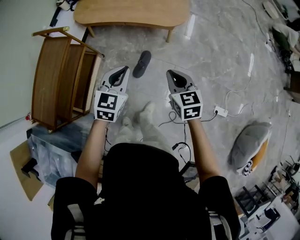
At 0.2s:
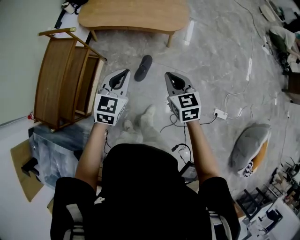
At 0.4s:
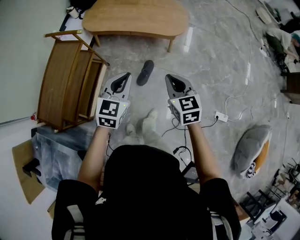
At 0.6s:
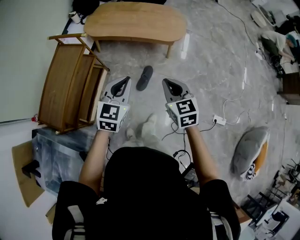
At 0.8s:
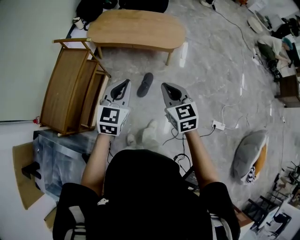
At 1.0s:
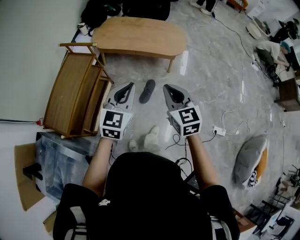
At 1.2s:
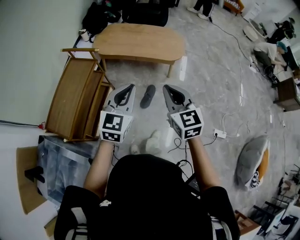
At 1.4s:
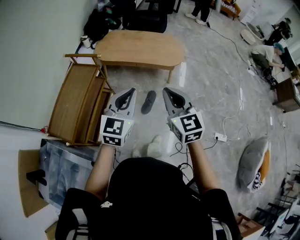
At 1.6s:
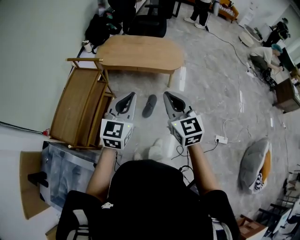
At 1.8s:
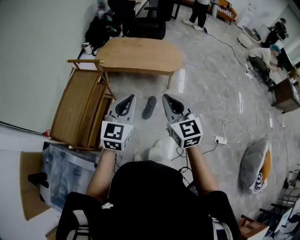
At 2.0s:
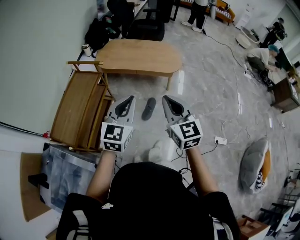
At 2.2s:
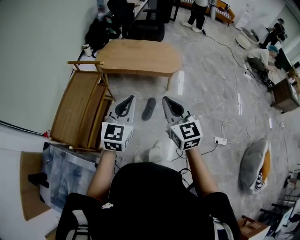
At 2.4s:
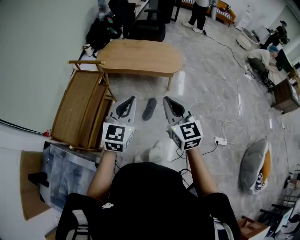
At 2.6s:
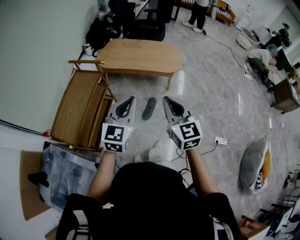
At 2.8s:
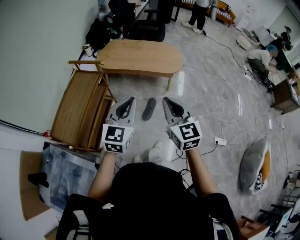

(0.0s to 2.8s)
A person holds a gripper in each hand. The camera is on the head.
0.0s - 1.4s: The left gripper shifts roughly 25 cm upward, backward and to the left. Meanwhile the right gripper is displaced upward, to the left and backward by roughly 30 cm, and changes its angle by approximately 20 degrees.
1.4s - 2.8s: The grippers make only small movements.

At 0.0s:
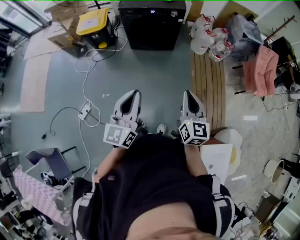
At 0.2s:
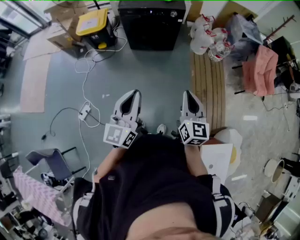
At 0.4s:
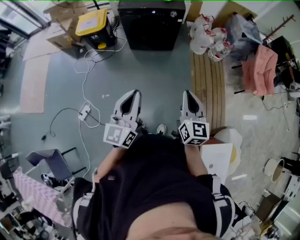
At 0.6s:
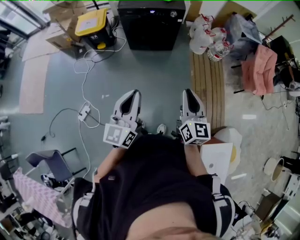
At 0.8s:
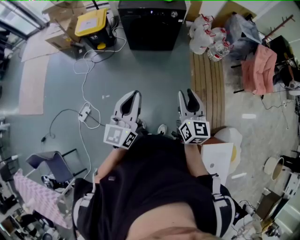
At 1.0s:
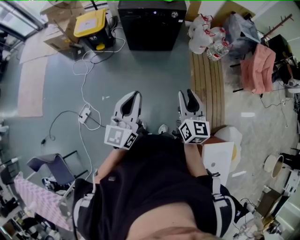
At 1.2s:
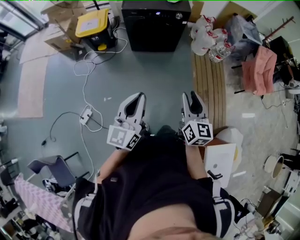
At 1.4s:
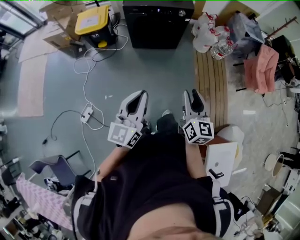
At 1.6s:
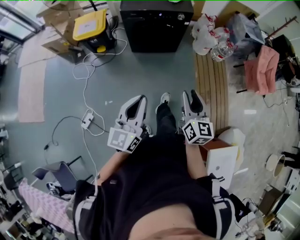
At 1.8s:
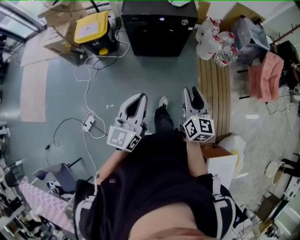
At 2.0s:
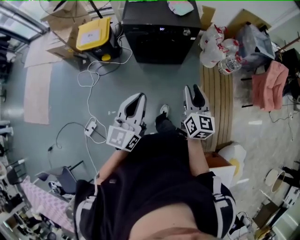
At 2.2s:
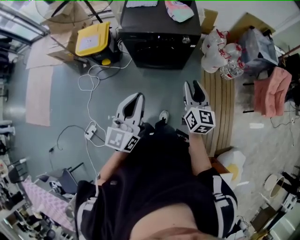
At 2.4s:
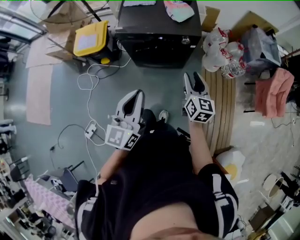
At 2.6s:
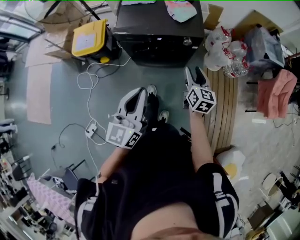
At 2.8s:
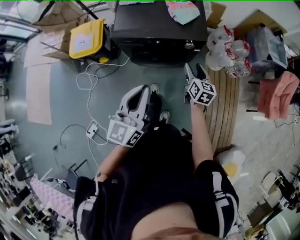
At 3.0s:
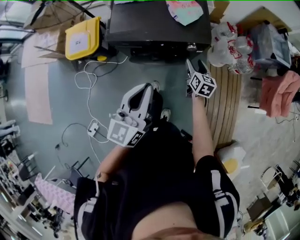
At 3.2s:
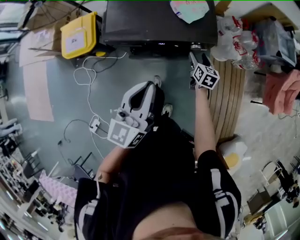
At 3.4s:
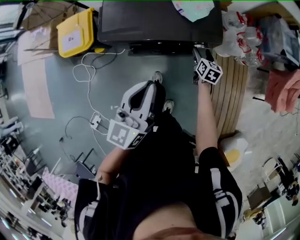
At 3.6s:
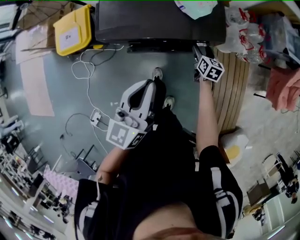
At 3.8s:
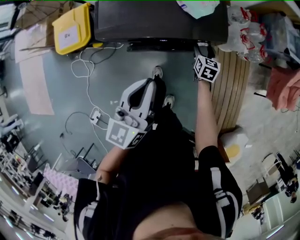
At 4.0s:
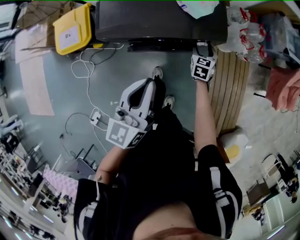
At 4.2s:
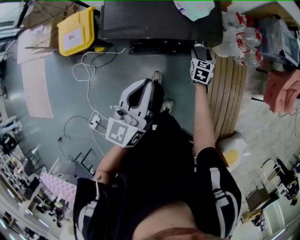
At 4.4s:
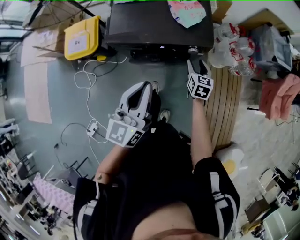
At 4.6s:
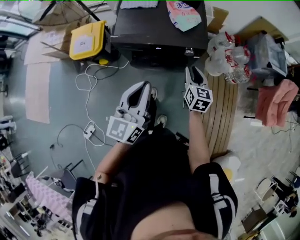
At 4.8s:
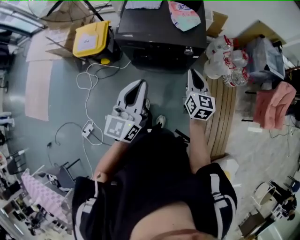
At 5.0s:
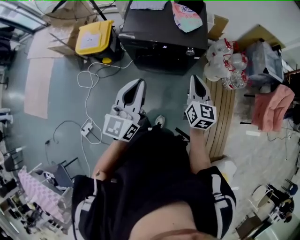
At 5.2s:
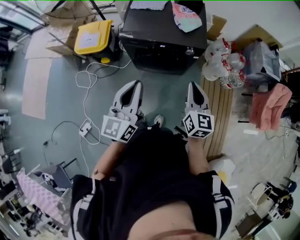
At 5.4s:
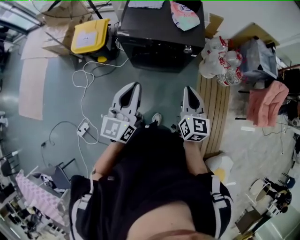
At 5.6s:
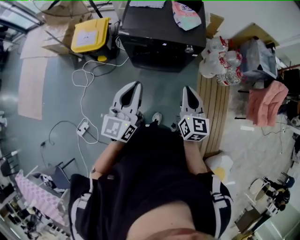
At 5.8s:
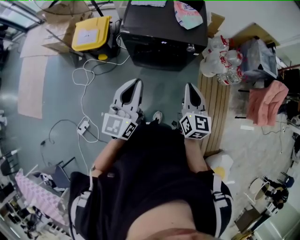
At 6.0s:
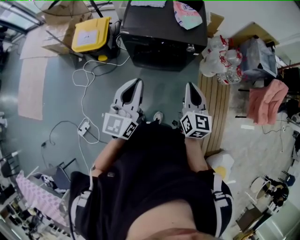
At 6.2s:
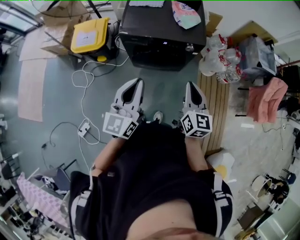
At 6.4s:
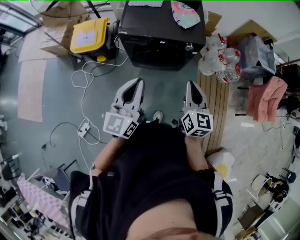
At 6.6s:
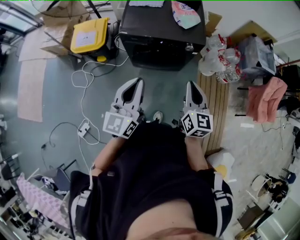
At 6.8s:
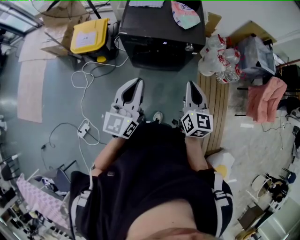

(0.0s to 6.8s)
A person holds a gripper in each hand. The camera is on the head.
0.0s - 1.4s: Both grippers move to the left and forward, approximately 15 cm. The right gripper opens up.
1.4s - 2.8s: The two grippers travel together, forward, roughly 60 cm.
2.8s - 4.0s: The right gripper moves downward and forward, roughly 30 cm, and swivels roughly 30 degrees. The left gripper goes some 25 cm forward and downward.
4.0s - 5.4s: The left gripper travels backward and upward by approximately 35 cm. The right gripper heads backward and upward, covering approximately 60 cm, swivels about 30 degrees, and closes up.
5.4s - 6.8s: The grippers stay close to where they were, moving slightly.

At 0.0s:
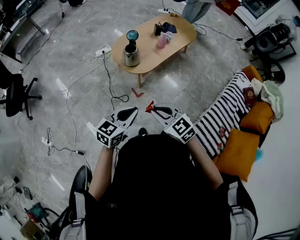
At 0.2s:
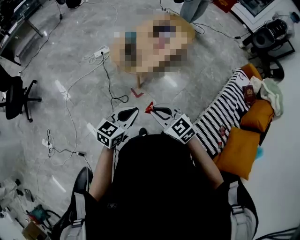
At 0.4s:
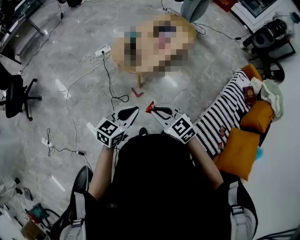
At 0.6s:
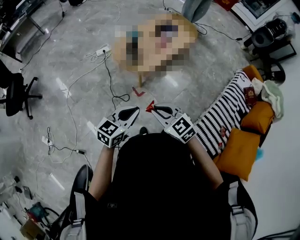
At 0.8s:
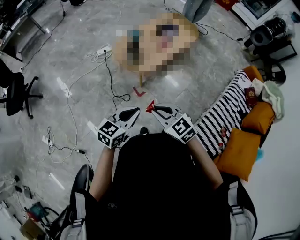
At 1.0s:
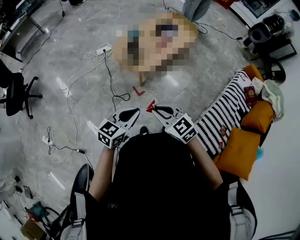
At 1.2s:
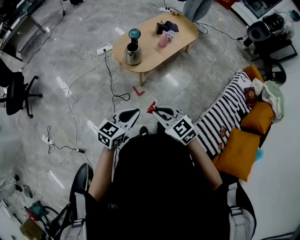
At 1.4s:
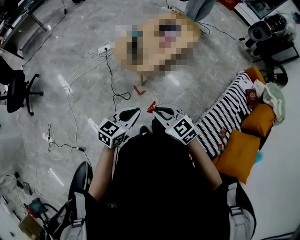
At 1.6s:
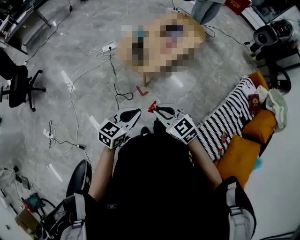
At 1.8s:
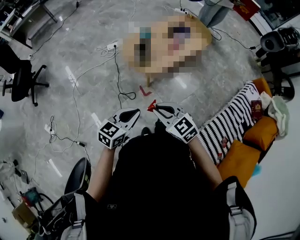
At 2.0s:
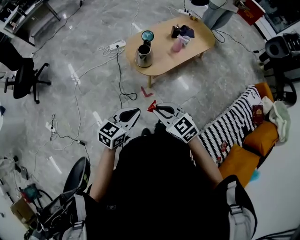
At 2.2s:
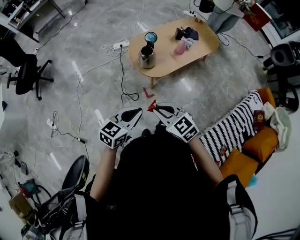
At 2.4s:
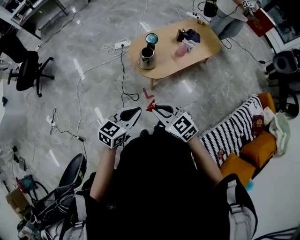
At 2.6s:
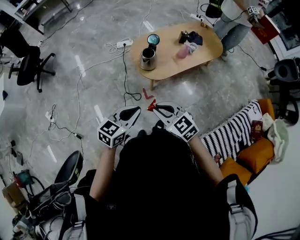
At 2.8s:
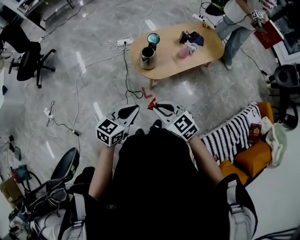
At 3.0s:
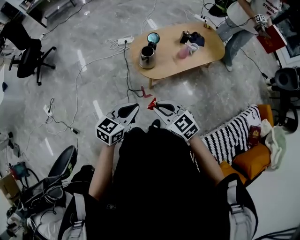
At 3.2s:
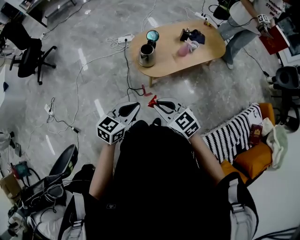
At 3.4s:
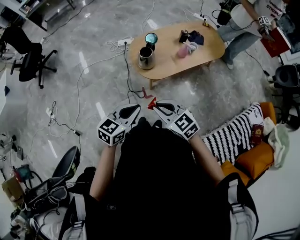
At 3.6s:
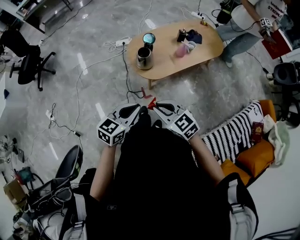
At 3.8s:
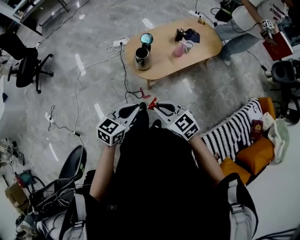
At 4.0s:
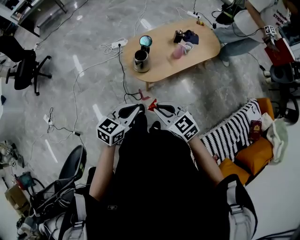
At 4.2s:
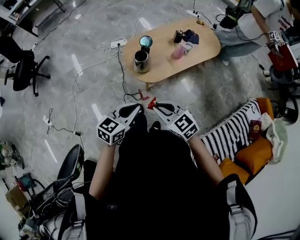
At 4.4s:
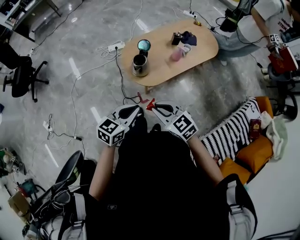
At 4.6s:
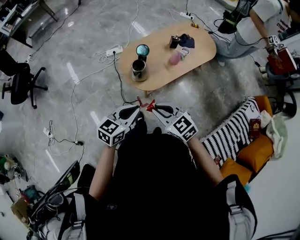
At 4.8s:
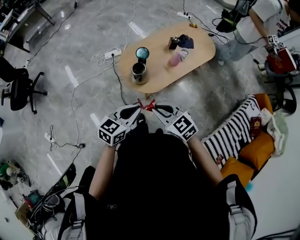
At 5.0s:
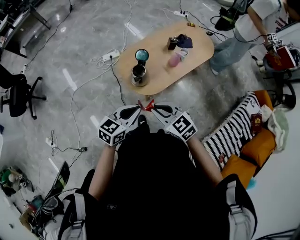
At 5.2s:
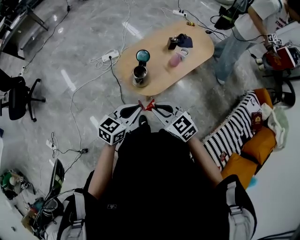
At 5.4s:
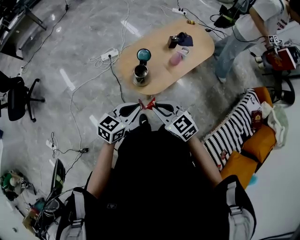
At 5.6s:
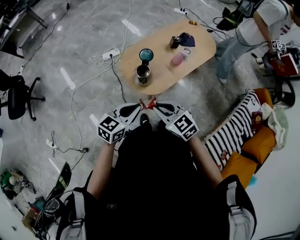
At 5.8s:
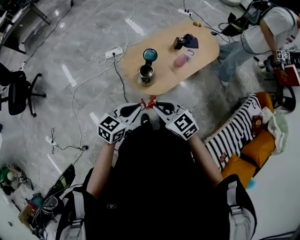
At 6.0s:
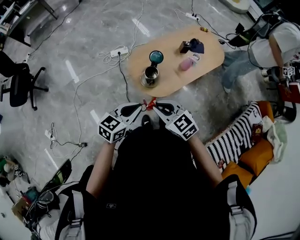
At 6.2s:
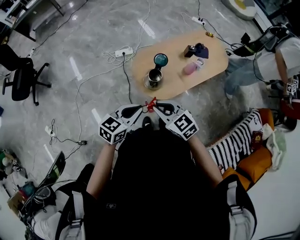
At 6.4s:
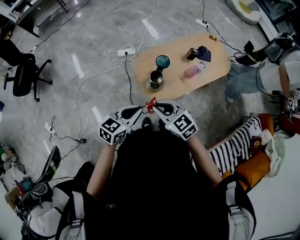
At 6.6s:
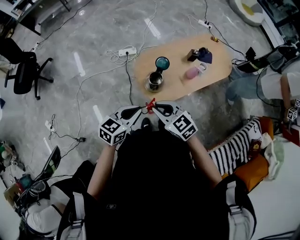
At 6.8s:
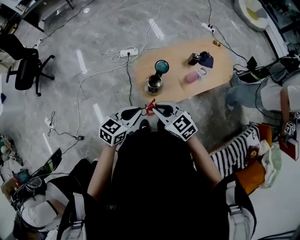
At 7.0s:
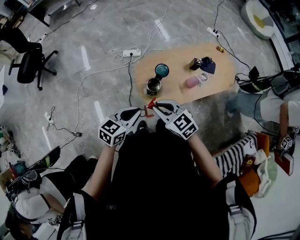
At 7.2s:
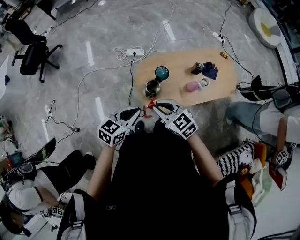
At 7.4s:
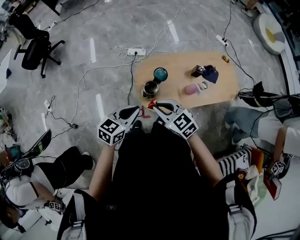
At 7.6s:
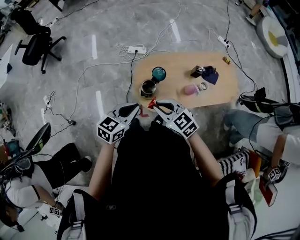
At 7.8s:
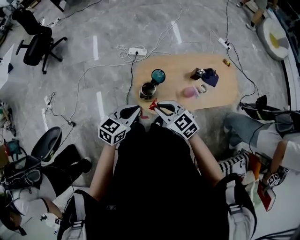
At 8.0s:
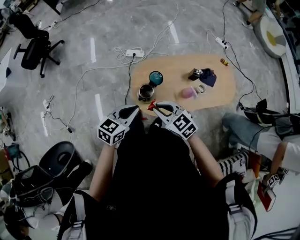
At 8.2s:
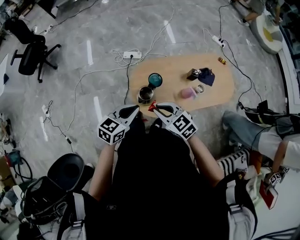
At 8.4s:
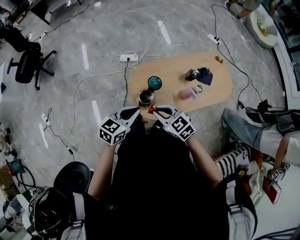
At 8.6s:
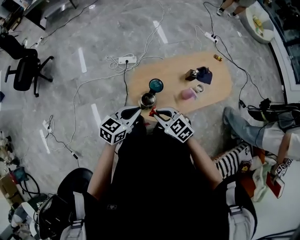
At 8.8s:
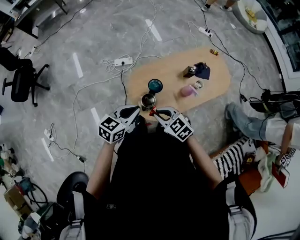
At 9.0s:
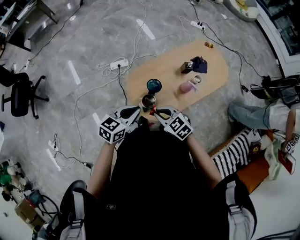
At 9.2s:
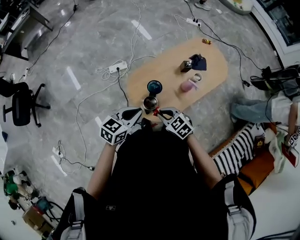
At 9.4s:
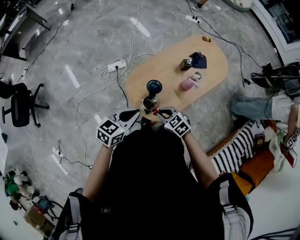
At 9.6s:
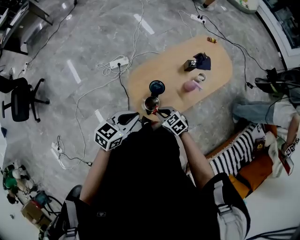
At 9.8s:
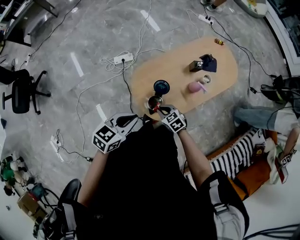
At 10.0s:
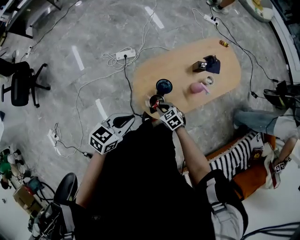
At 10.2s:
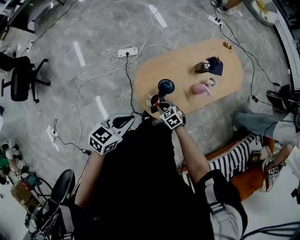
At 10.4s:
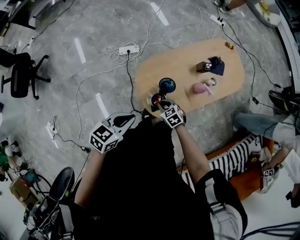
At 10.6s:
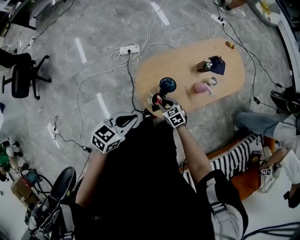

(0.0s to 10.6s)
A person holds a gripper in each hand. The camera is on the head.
0.0s - 1.6s: The grippers make only small movements.
1.6s - 3.0s: The two grippers go about 10 cm forward and to the right.
3.0s - 4.6s: Both grippers move forward, approximately 10 cm.
4.6s - 6.0s: The two grippers go about 10 cm to the left and forward.
6.0s - 7.6s: The left gripper ends up about 10 cm from where it was, and swivels roughly 20 degrees, while the right gripper ends up some 15 cm from where it was, and rotates approximately 20 degrees.
7.6s - 9.0s: The right gripper heads downward and forward, covering approximately 10 cm, and rotates approximately 20 degrees, while the left gripper goes about 10 cm forward, and changes its angle by roughly 20 degrees.
9.0s - 10.6s: The right gripper is displaced downward by approximately 20 cm. Meanwhile the left gripper moves to the left, roughly 5 cm.

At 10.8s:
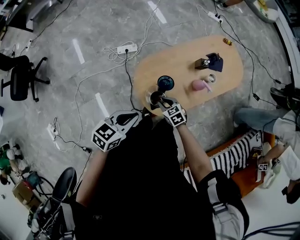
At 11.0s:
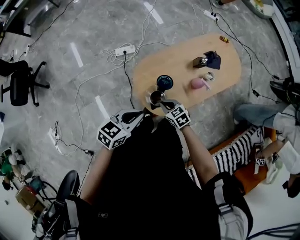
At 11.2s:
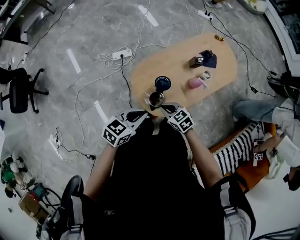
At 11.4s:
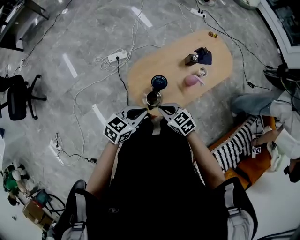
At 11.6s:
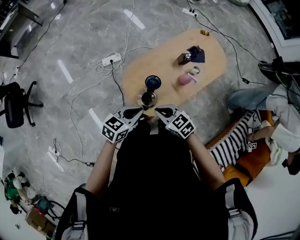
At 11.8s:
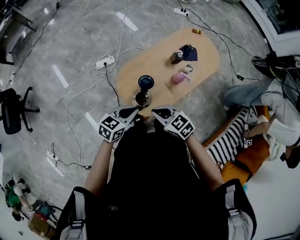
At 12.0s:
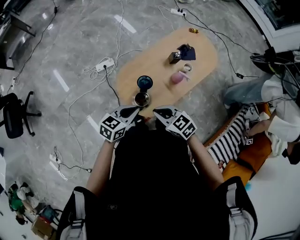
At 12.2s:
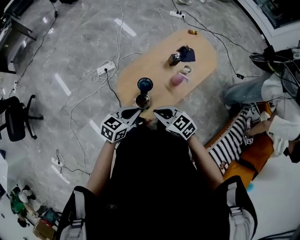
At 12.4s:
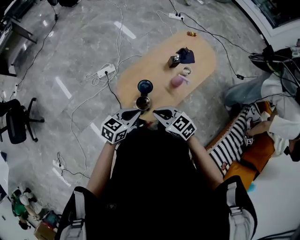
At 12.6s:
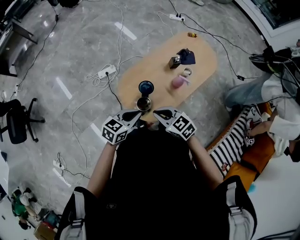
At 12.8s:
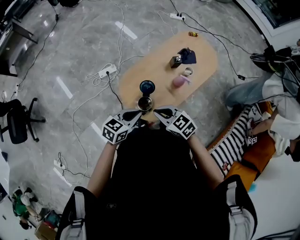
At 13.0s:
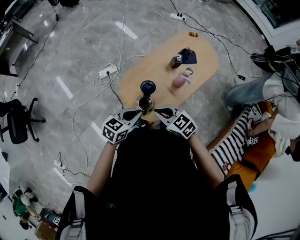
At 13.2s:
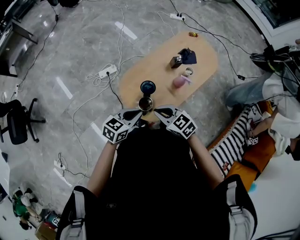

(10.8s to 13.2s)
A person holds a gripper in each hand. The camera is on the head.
10.8s - 12.0s: The right gripper goes approximately 20 cm upward, and closes up. Meanwhile the left gripper goes about 5 cm to the right.
12.0s - 13.2s: The grippers move only a little.

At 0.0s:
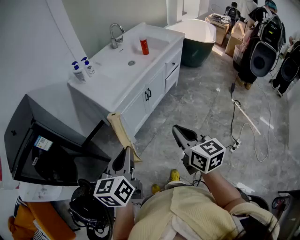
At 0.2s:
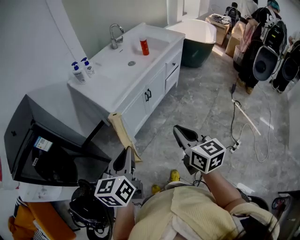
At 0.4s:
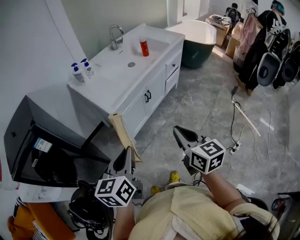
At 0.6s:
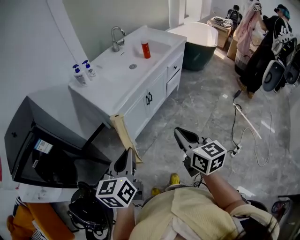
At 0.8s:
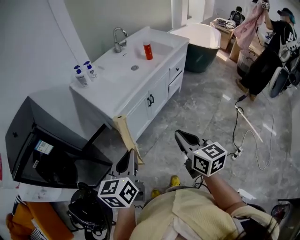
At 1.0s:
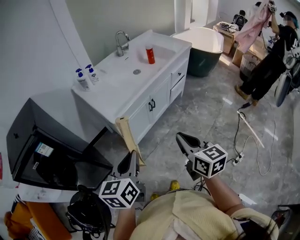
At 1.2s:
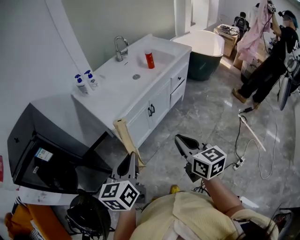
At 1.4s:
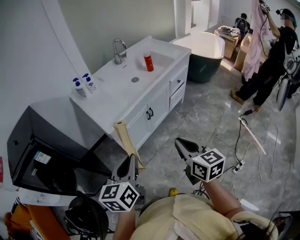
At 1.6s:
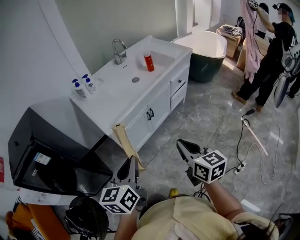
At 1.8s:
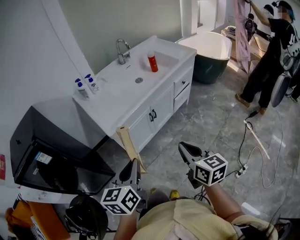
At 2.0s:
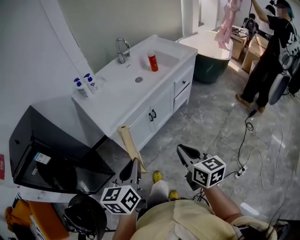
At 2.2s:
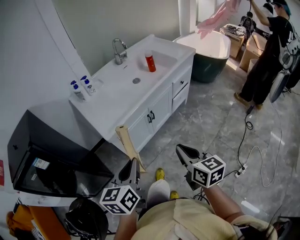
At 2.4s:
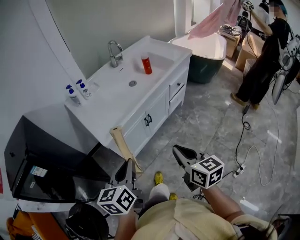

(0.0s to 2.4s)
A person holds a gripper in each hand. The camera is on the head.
0.0s - 1.2s: Both grippers travel together forward, approximately 5 cm.
1.2s - 2.4s: Both grippers travel together forward, some 5 cm.
